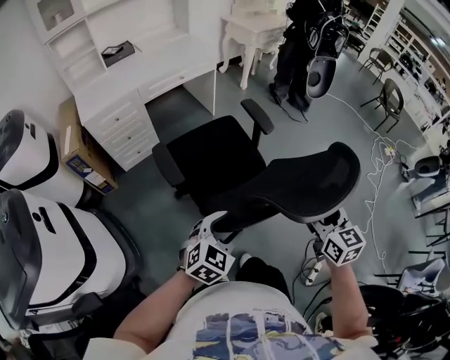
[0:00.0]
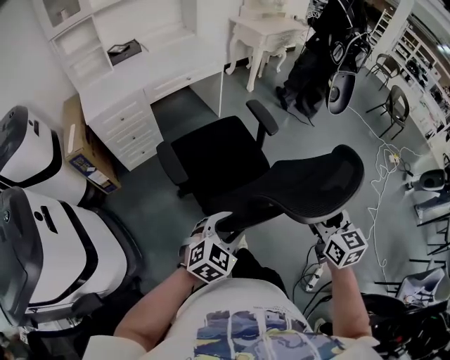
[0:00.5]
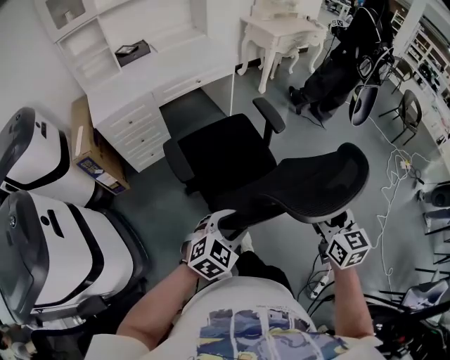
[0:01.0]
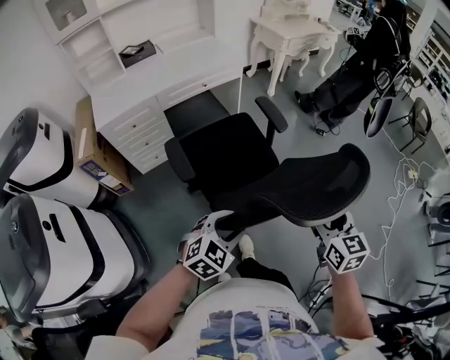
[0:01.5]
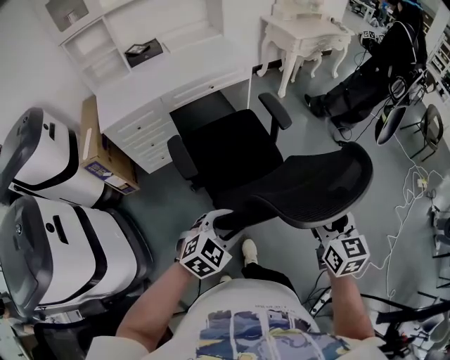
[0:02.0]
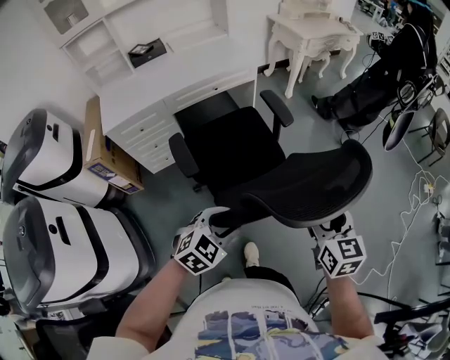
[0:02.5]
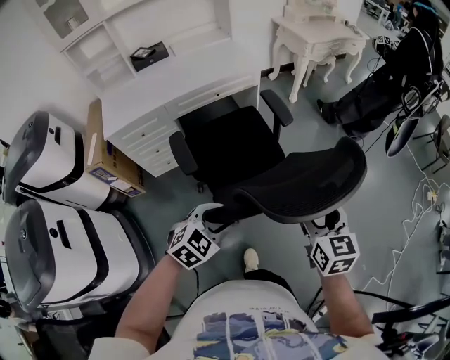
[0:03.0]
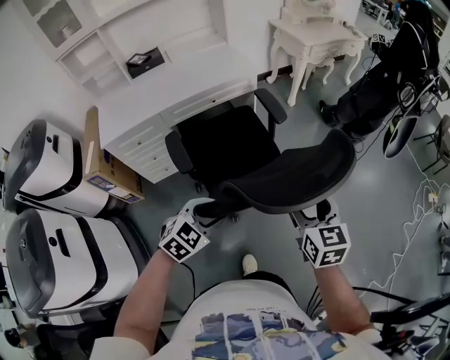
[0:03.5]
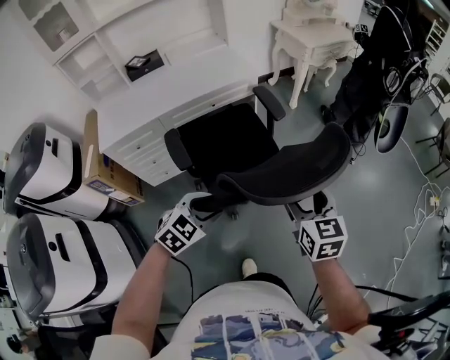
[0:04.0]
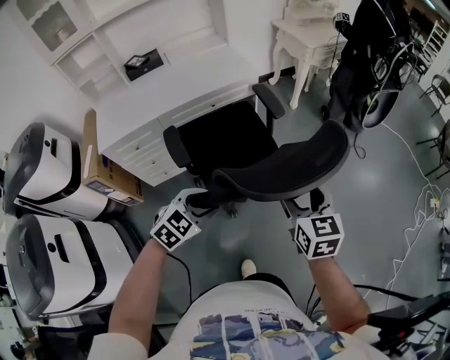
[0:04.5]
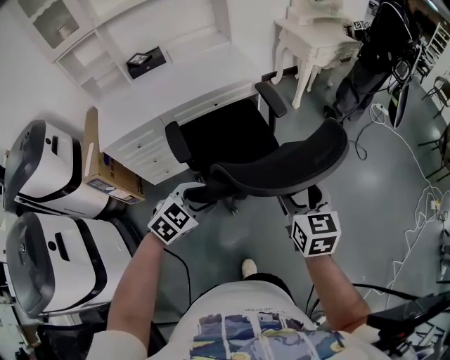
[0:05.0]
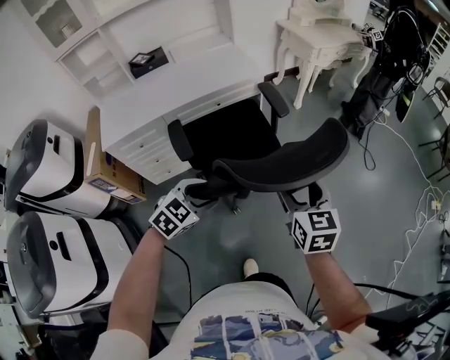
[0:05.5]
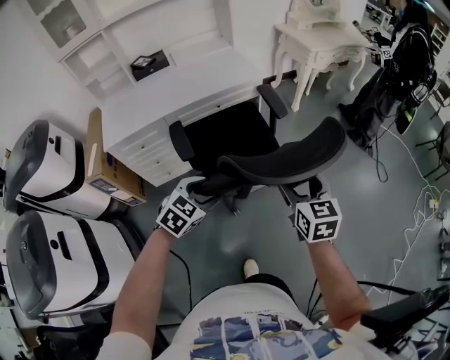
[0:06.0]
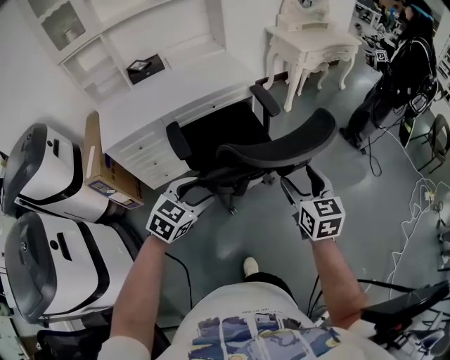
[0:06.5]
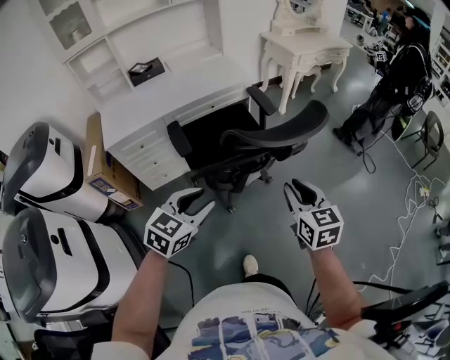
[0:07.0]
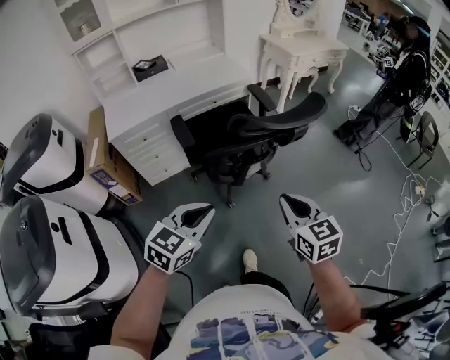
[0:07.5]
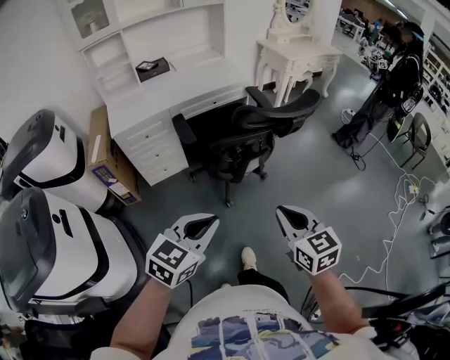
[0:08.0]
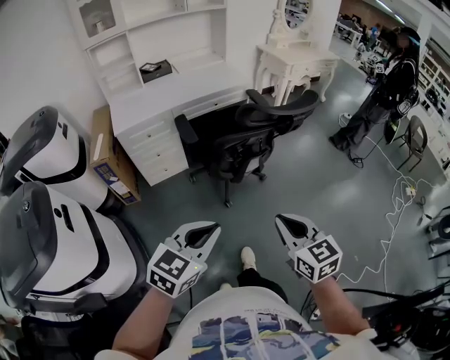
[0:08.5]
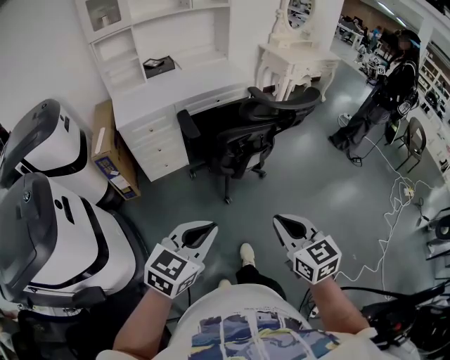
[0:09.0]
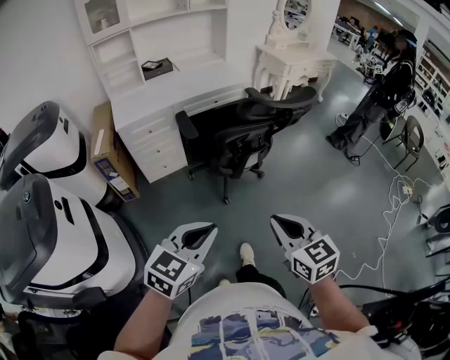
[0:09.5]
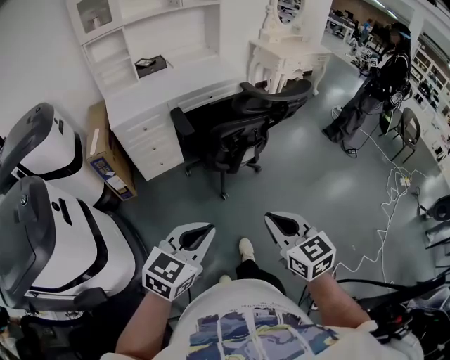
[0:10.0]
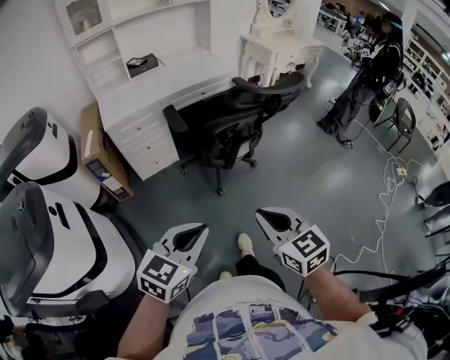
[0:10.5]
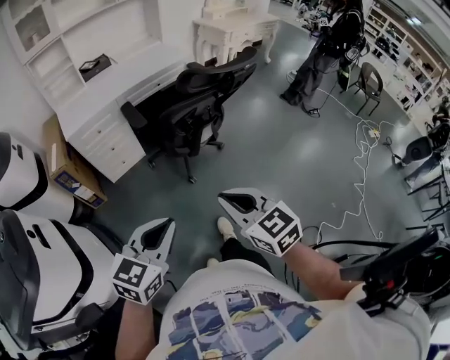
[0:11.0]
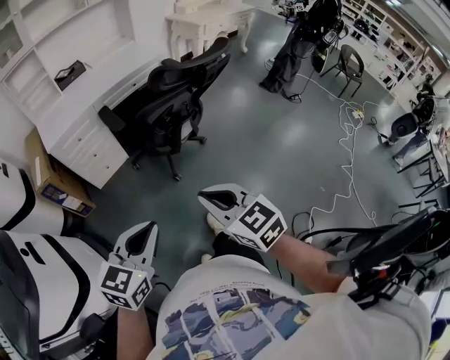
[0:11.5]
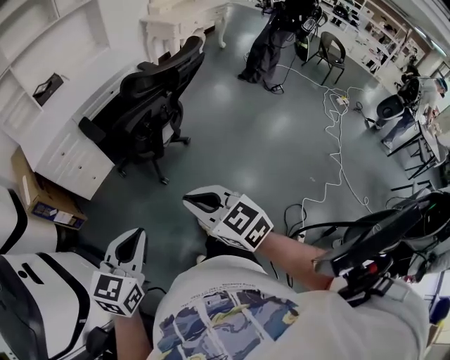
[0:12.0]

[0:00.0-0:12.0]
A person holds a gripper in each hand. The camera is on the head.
0:00.0 to 0:02.0: The two grippers go approximately 15 cm forward.
0:02.0 to 0:04.0: Both grippers travel together forward and to the left, about 20 cm.
0:04.0 to 0:06.0: The left gripper moves approximately 5 cm.
0:06.0 to 0:08.0: The right gripper moves backward, approximately 30 cm, and closes. The left gripper shifts some 30 cm backward and upward, changes its angle by approximately 20 degrees, and closes.
0:08.0 to 0:10.0: Both grippers move backward, about 10 cm.
0:10.0 to 0:12.0: The grippers stay close to where they were, moving slightly.

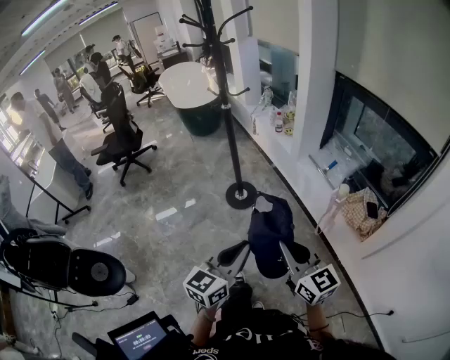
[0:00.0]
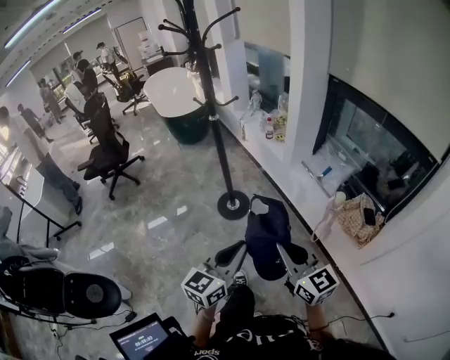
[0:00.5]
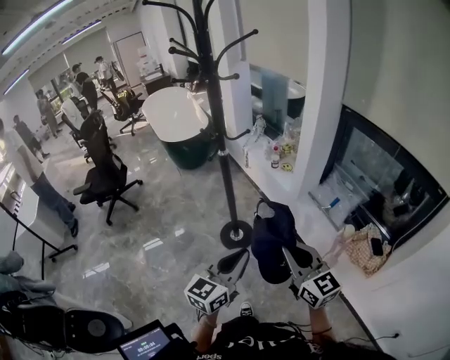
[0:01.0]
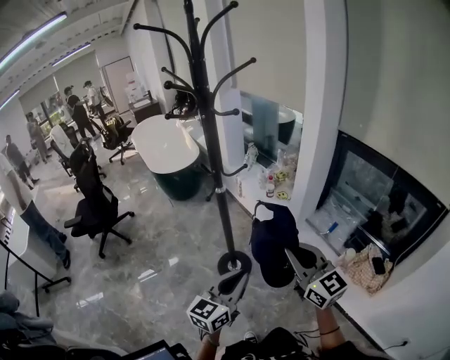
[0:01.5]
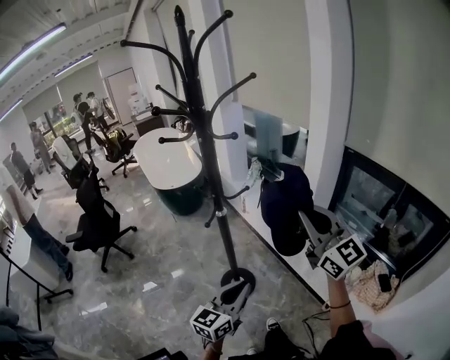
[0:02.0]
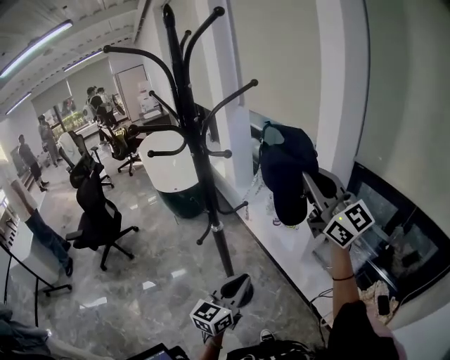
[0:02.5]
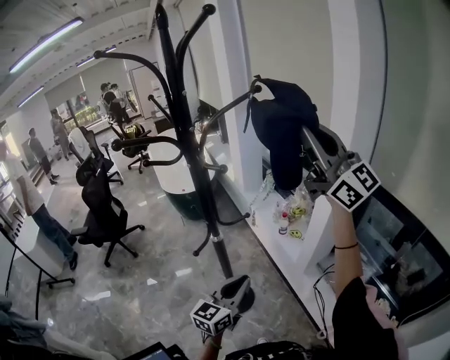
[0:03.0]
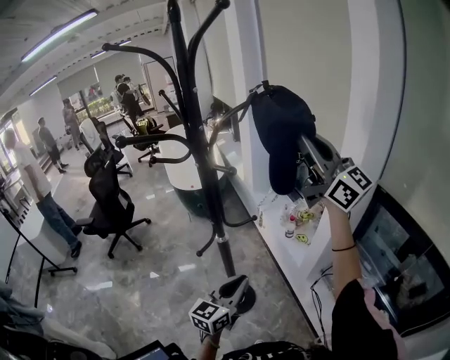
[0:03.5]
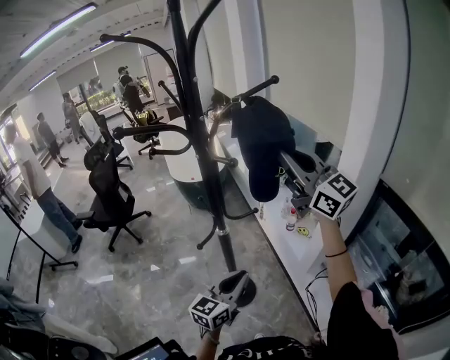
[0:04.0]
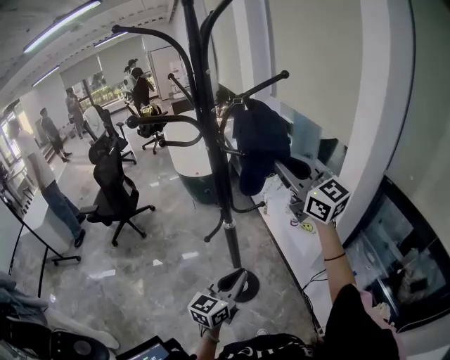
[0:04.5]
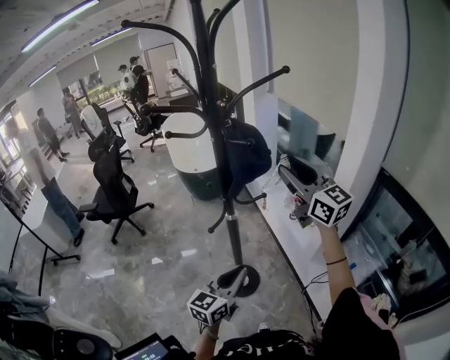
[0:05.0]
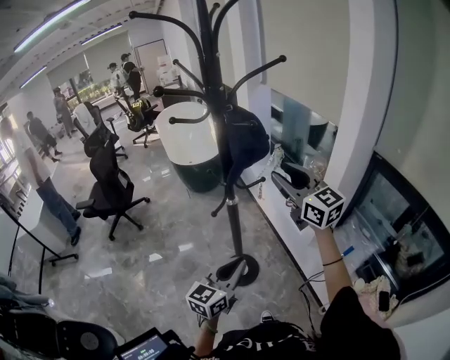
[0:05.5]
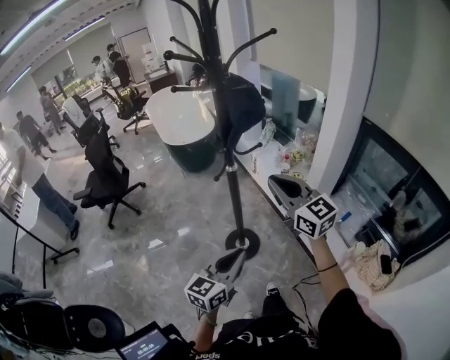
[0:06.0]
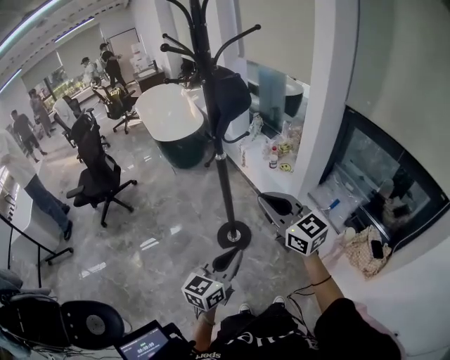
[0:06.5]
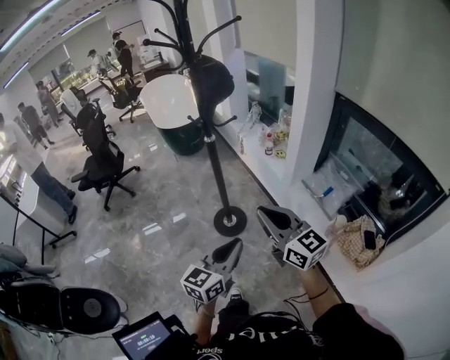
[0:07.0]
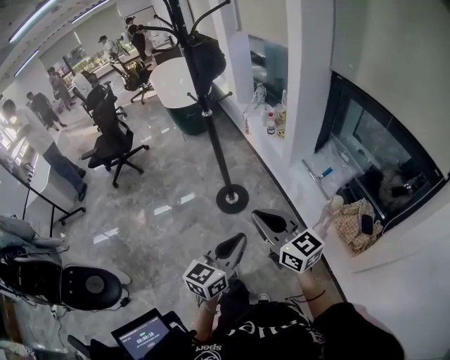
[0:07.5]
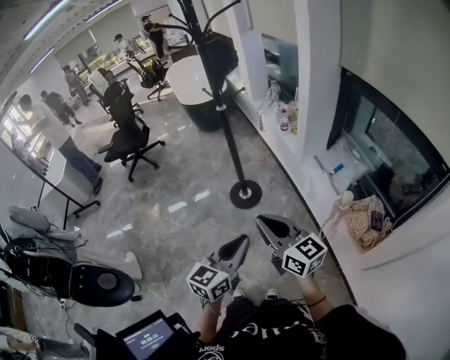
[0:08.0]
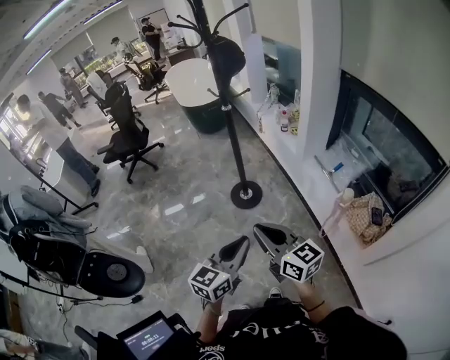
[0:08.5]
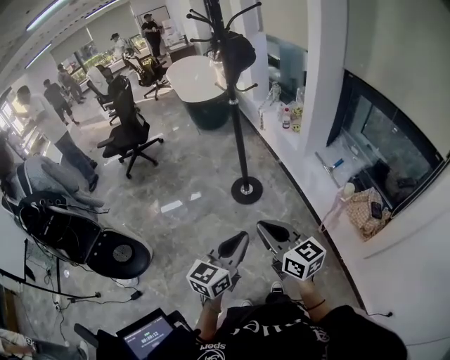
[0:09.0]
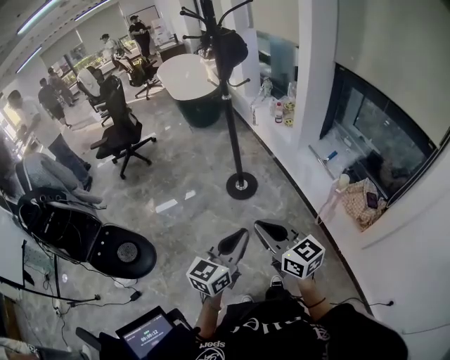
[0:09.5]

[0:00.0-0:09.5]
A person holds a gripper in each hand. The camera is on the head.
0:00.0 to 0:02.0: Both grippers are carried forward, some 50 cm. The right gripper shifts approximately 20 cm upward, and turns by some 30 degrees.
0:02.0 to 0:04.0: Both grippers travel together forward, some 20 cm. The right gripper changes its angle by about 30 degrees.
0:04.0 to 0:05.5: The right gripper moves downward, backward and to the left, some 15 cm, and opens. Meanwhile the left gripper heads backward and to the left, covering roughly 10 cm.
0:05.5 to 0:07.5: Both grippers move backward, some 40 cm. The right gripper closes its fingers.
0:07.5 to 0:09.5: The grippers both shift backward and to the left by approximately 20 cm.

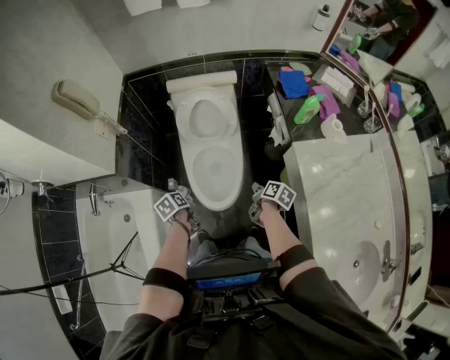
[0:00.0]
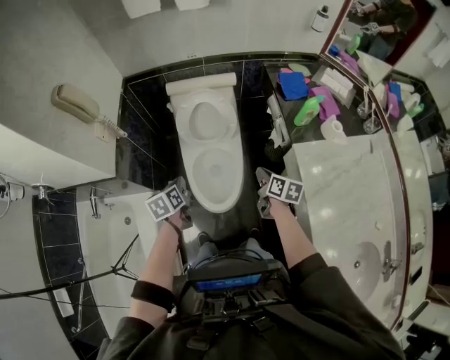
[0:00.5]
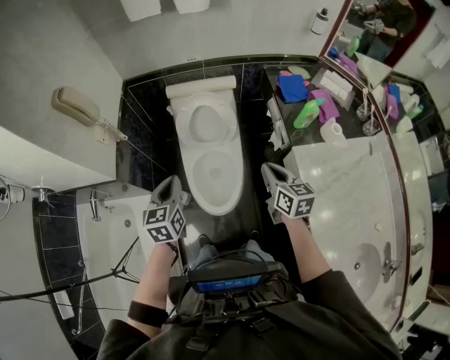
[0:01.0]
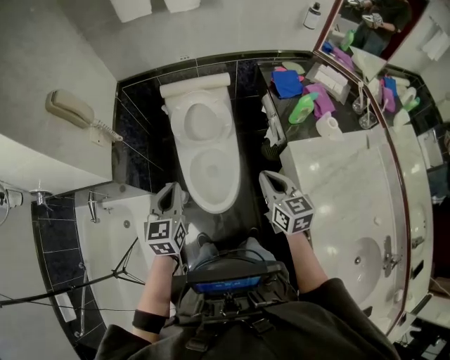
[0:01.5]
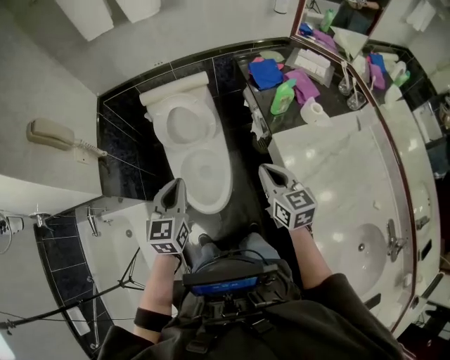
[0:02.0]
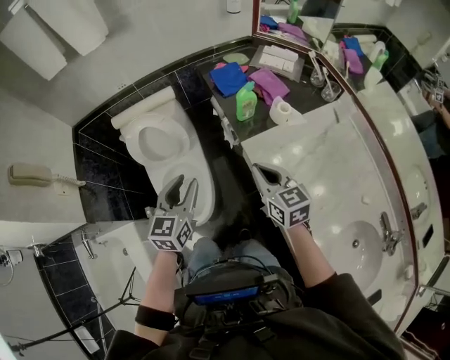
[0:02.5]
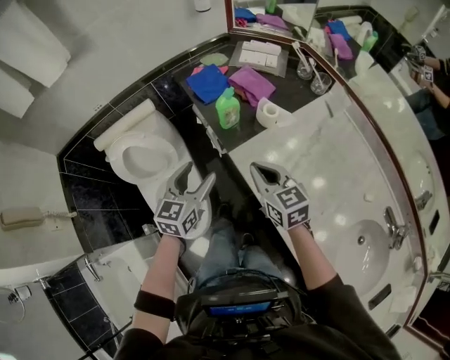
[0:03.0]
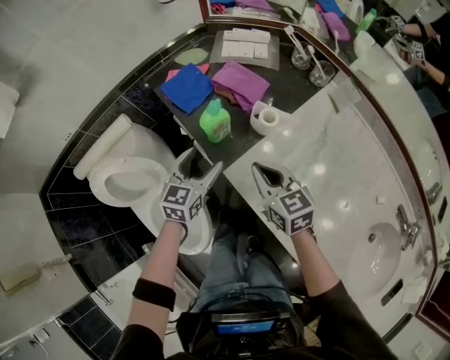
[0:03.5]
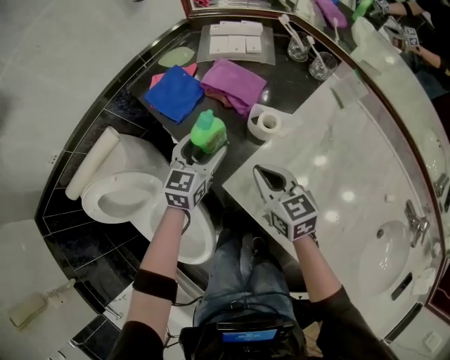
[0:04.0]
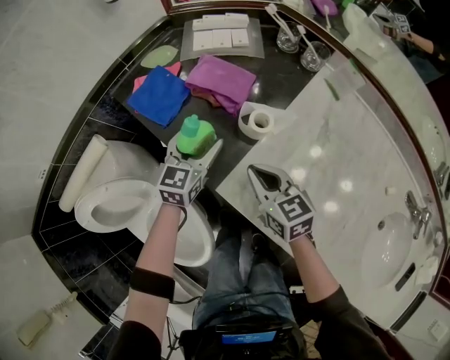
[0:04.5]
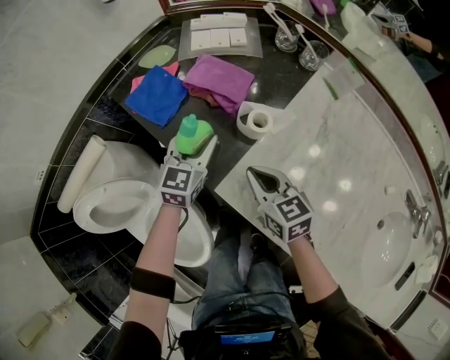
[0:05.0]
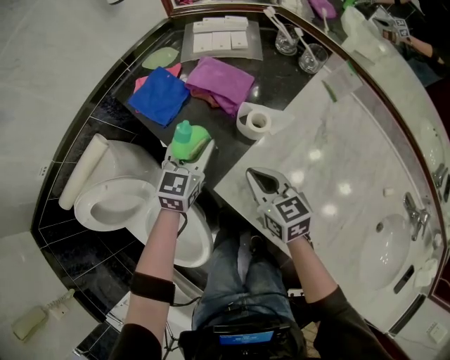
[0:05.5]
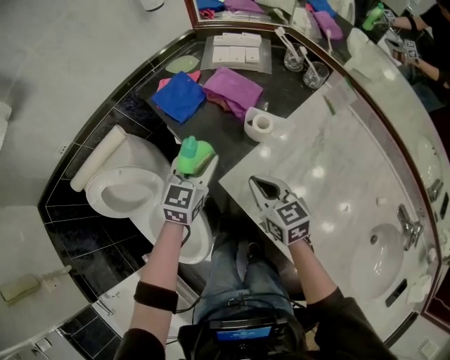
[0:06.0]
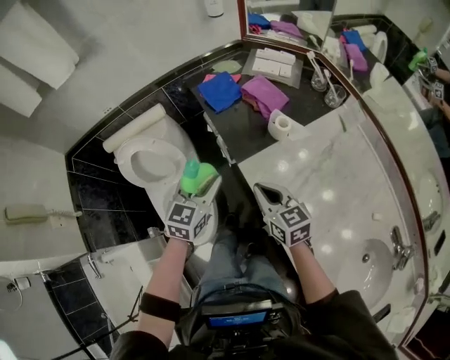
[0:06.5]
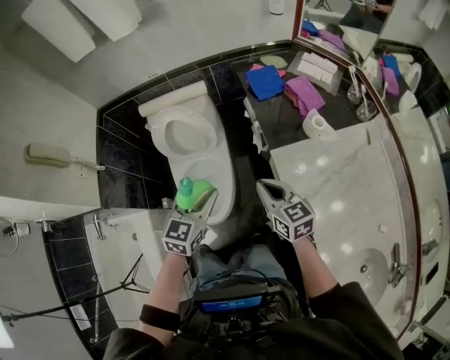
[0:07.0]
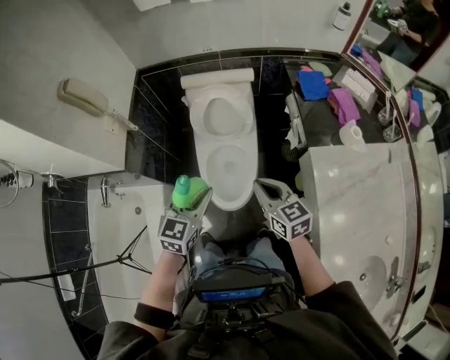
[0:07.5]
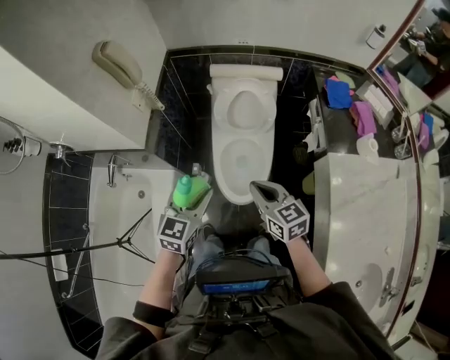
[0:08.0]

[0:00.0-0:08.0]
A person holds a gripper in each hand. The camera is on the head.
0:00.0 to 0:02.0: The right gripper shifts some 25 cm upward, and rolls counterclockwise, seen from behind, by approximately 50 degrees. The left gripper heads upward and to the right, covering roughly 30 cm, and rolls clockwise, seen from behind, by about 60 degrees.
0:02.0 to 0:04.0: The right gripper changes place by some 35 cm, and rotates approximately 20 degrees, while the left gripper ends up roughly 60 cm from where it was, rotates roughly 40 degrees, and opens.
0:04.0 to 0:06.0: The left gripper moves backward and upward, about 10 cm, and closes up.
0:06.0 to 0:08.0: Both grippers are carried roughly 60 cm. The right gripper swivels some 50 degrees. The left gripper turns by approximately 40 degrees.
